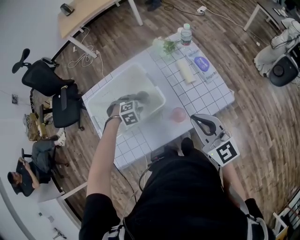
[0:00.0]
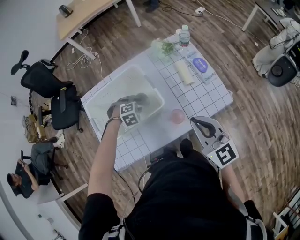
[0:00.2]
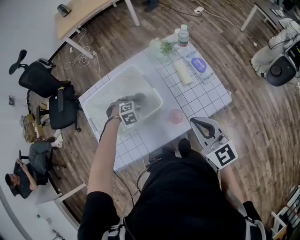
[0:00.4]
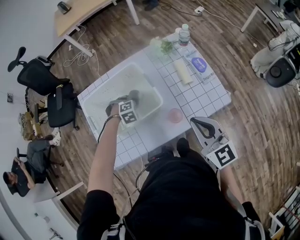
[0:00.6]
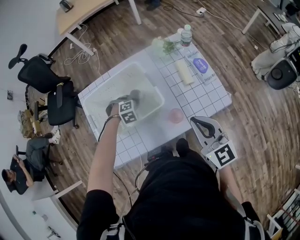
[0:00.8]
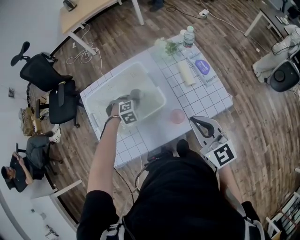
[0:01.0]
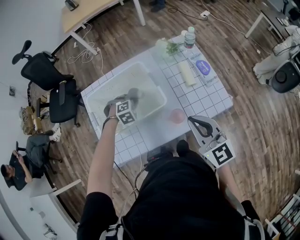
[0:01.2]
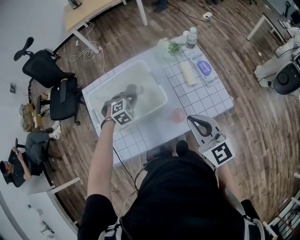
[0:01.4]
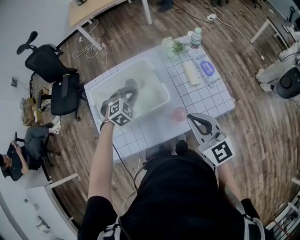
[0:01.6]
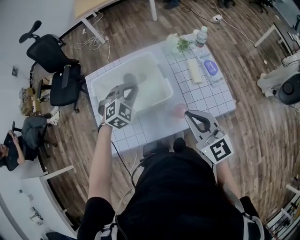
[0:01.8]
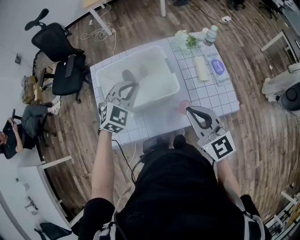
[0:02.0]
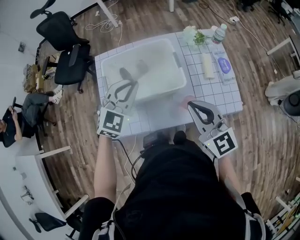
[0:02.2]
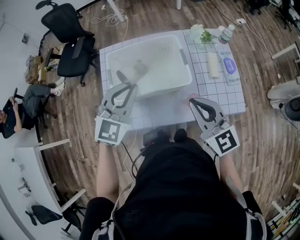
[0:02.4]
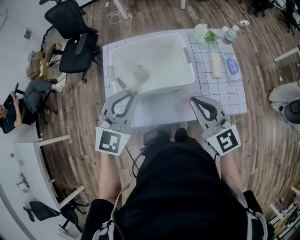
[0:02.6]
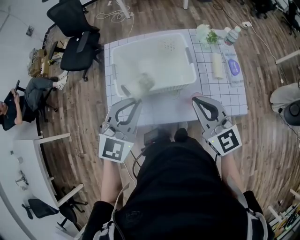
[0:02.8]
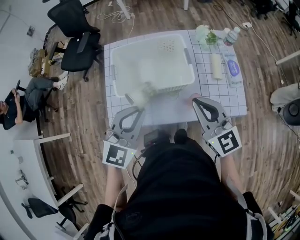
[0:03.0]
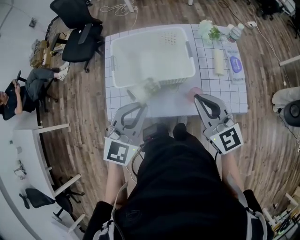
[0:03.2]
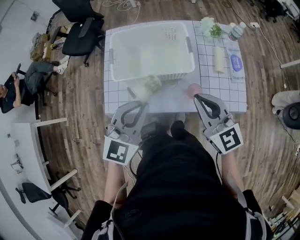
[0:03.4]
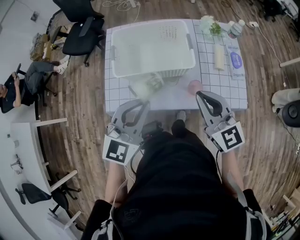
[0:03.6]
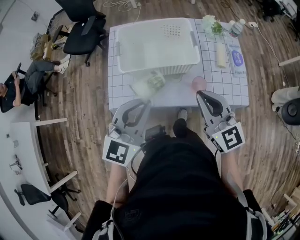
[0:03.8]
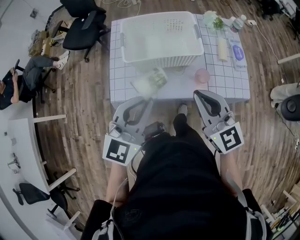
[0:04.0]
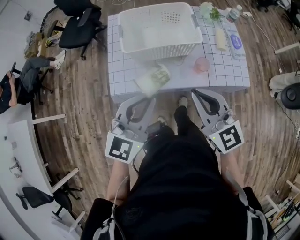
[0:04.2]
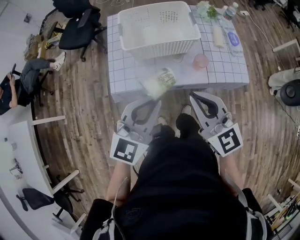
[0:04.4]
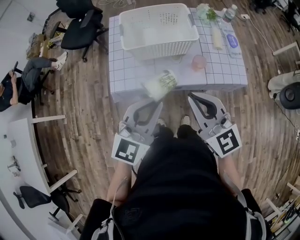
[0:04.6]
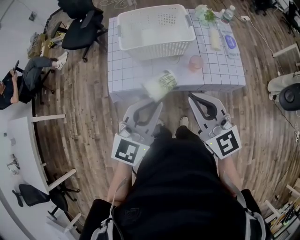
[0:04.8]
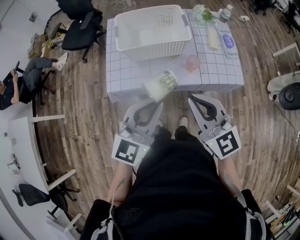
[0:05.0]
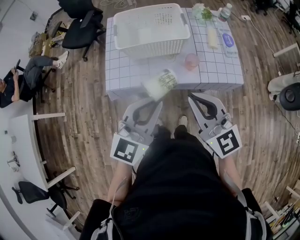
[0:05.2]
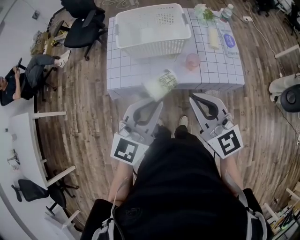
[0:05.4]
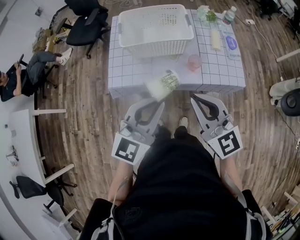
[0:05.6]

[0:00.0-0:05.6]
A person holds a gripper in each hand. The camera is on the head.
0:00.0 to 0:01.4: The left gripper moves approximately 5 cm, and closes up.
0:01.4 to 0:02.8: The right gripper heads to the left, covering about 10 cm; the left gripper goes some 30 cm upward and backward, and tips its fingers upward by some 40 degrees.
0:02.8 to 0:04.2: The left gripper moves backward, approximately 15 cm, and rotates roughly 20 degrees. The right gripper is displaced backward and to the left by approximately 15 cm.
0:04.2 to 0:05.6: The right gripper travels backward by about 5 cm. The left gripper travels backward and to the right by some 10 cm.

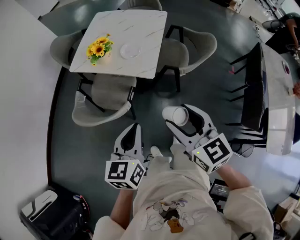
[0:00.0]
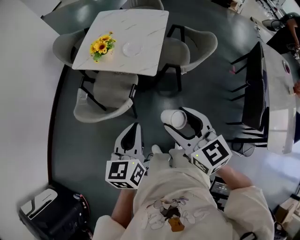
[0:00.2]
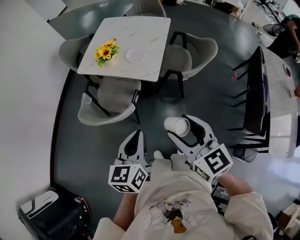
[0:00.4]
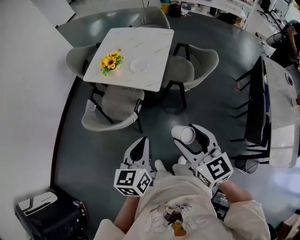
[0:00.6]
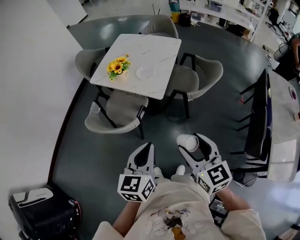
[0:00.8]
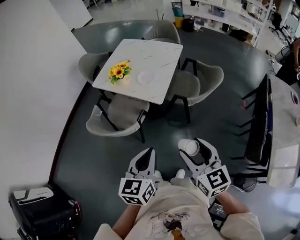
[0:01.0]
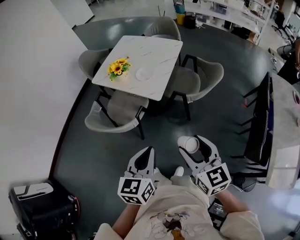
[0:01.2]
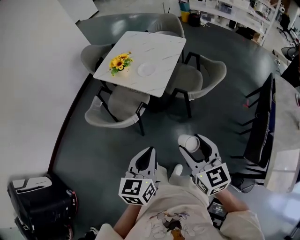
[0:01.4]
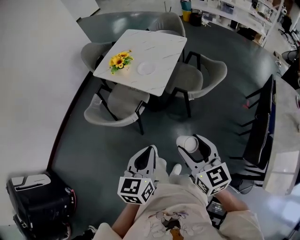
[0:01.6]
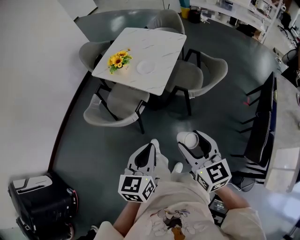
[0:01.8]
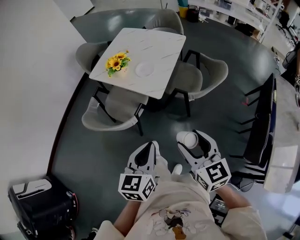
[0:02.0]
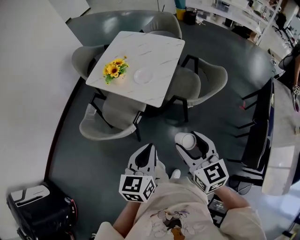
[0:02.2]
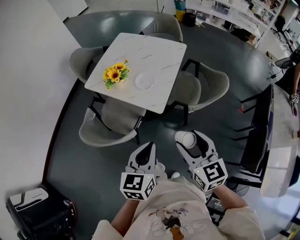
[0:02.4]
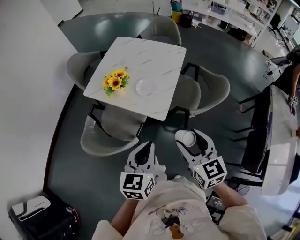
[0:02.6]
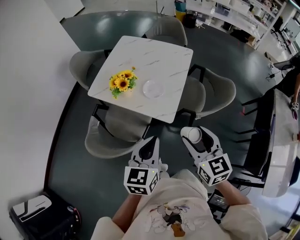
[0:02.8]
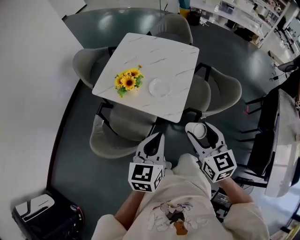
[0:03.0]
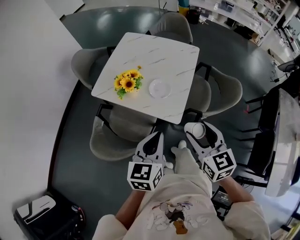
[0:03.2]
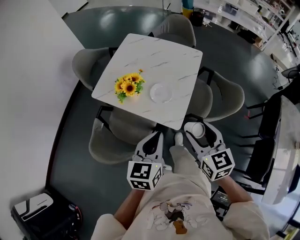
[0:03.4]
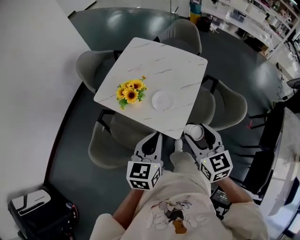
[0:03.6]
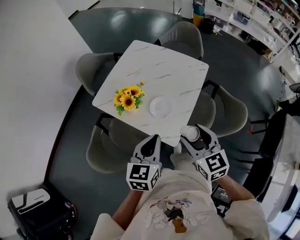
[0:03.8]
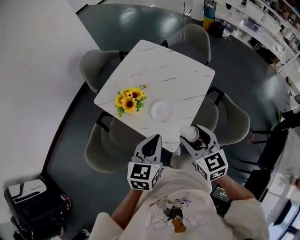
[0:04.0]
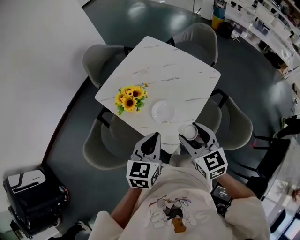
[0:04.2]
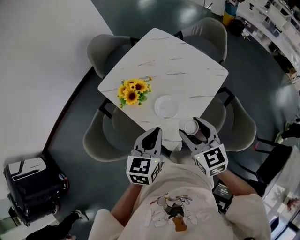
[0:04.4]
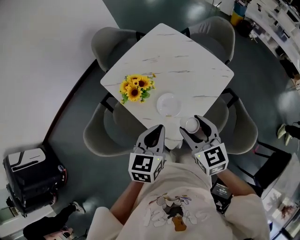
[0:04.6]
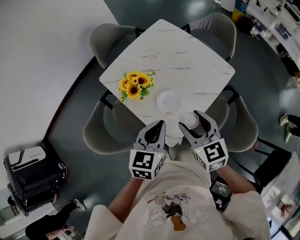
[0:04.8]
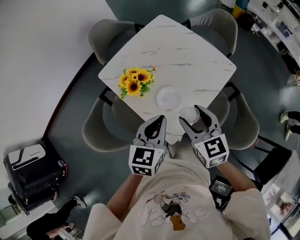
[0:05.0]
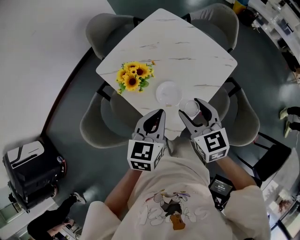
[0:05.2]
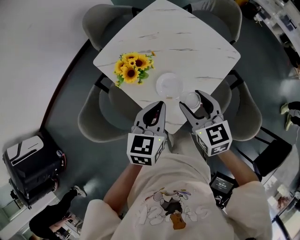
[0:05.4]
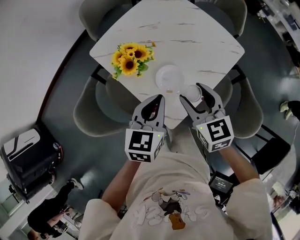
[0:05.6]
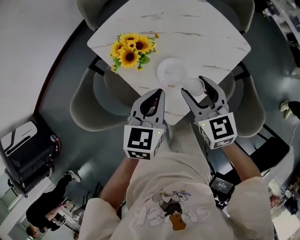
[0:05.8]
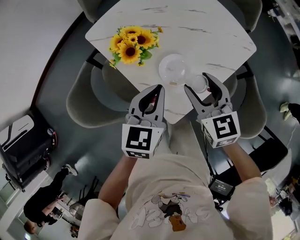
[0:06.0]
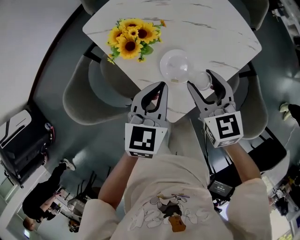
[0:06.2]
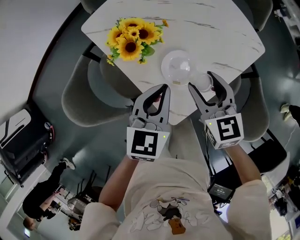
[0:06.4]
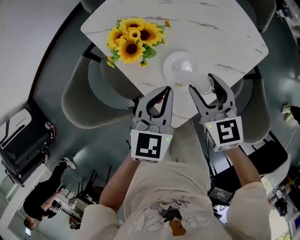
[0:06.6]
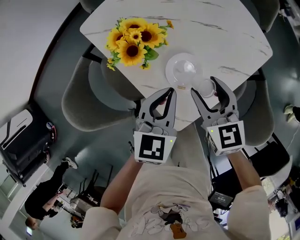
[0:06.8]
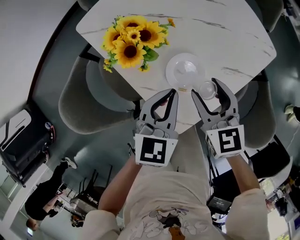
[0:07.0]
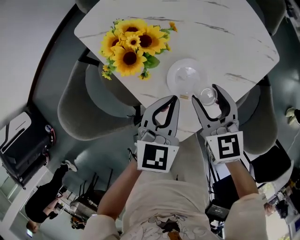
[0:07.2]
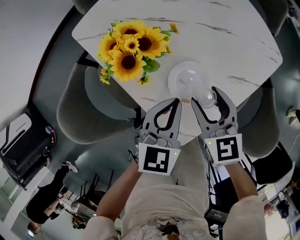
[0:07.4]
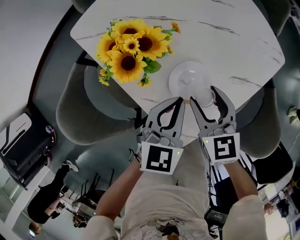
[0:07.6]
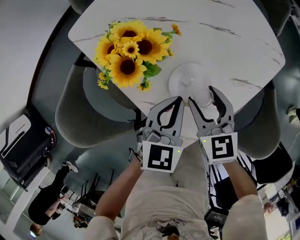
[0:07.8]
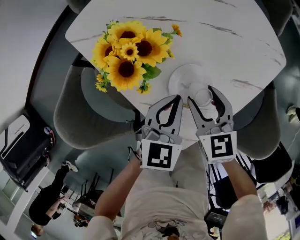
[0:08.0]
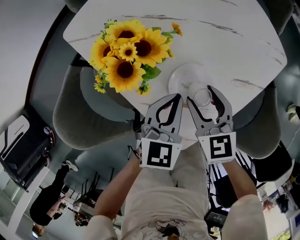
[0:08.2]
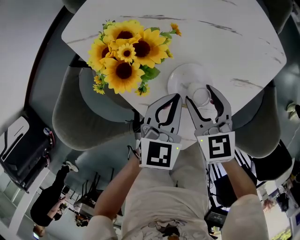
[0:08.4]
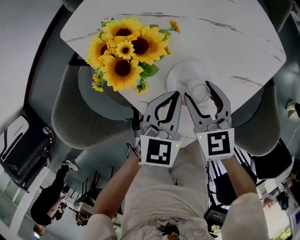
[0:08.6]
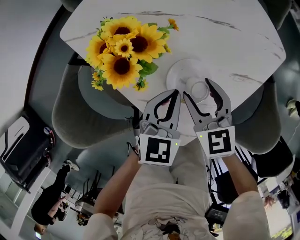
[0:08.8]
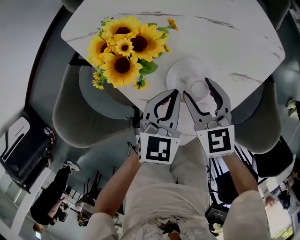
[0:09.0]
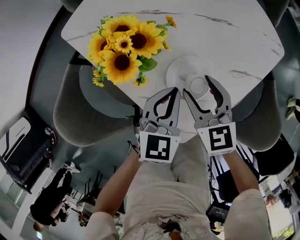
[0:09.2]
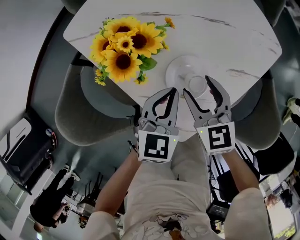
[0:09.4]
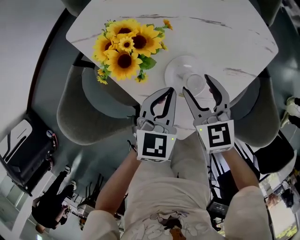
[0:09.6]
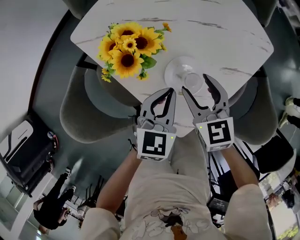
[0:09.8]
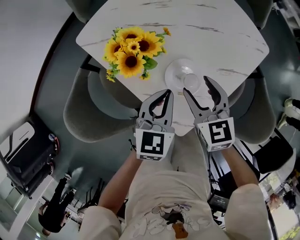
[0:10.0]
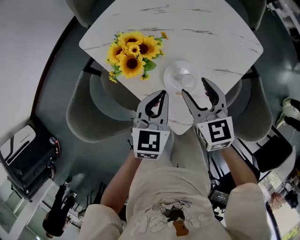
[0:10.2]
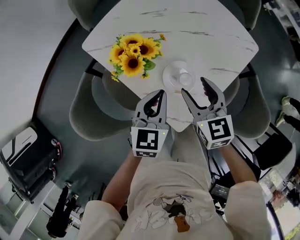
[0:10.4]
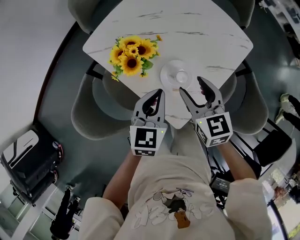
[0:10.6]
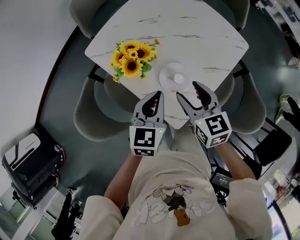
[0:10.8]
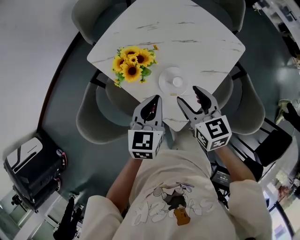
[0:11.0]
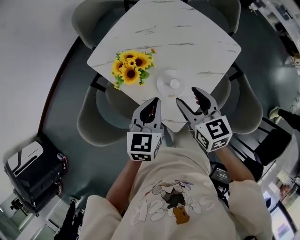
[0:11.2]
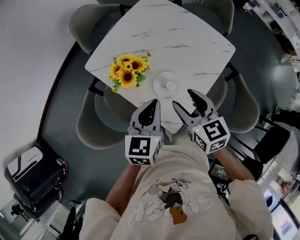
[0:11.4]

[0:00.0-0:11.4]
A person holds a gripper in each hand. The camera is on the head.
0:00.0 to 0:01.4: Both grippers move to the right and backward, approximately 15 cm.
0:01.4 to 0:02.8: Both grippers travel together forward, about 25 cm.
0:02.8 to 0:04.2: Both grippers travel together forward, about 20 cm. The right gripper swivels approximately 20 degrees.
0:04.2 to 0:05.6: The grippers both shift forward and downward by approximately 10 cm.
0:05.6 to 0:07.2: Both grippers move downward, about 15 cm.
0:07.2 to 0:08.6: Both grippers move downward, roughly 5 cm.
0:08.6 to 0:10.0: Both grippers travel together upward, approximately 5 cm.
0:10.0 to 0:11.4: The grippers both shift upward by about 15 cm.

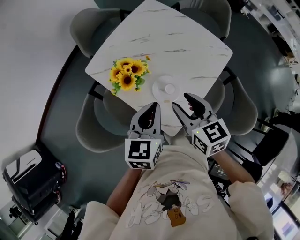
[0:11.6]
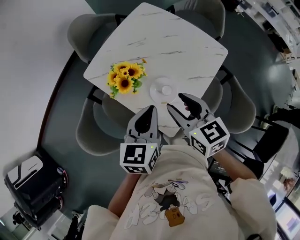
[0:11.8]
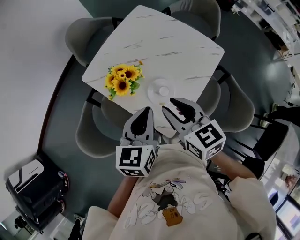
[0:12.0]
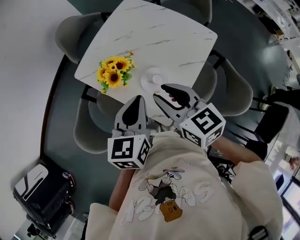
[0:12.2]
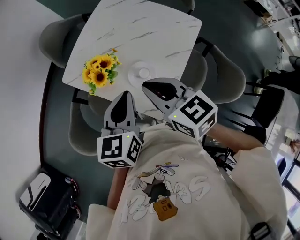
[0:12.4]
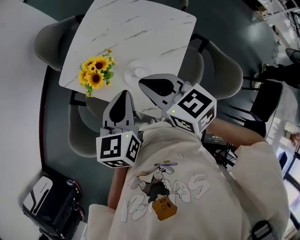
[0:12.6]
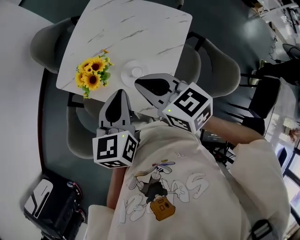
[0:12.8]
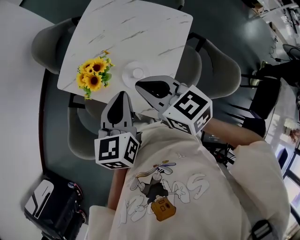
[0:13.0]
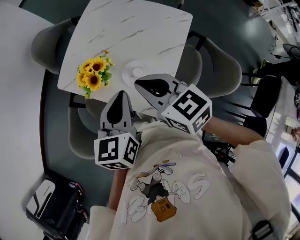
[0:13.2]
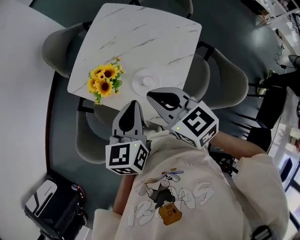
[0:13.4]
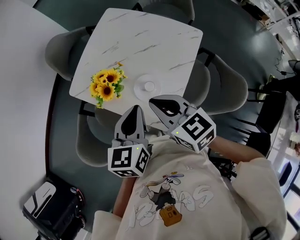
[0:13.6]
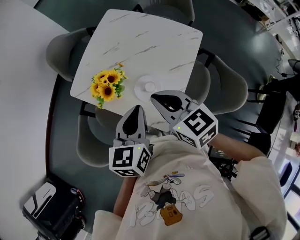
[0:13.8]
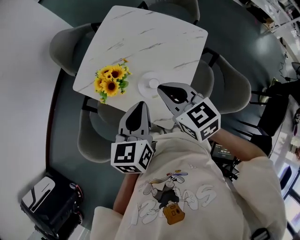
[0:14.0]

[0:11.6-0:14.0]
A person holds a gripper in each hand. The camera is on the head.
0:11.6 to 0:12.8: The right gripper moves approximately 5 cm, and closes up.
0:12.8 to 0:14.0: The grippers make only small movements.

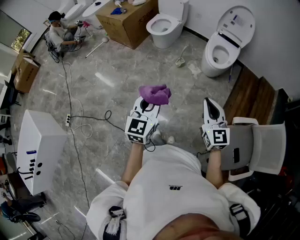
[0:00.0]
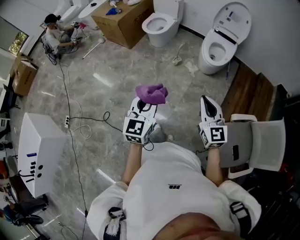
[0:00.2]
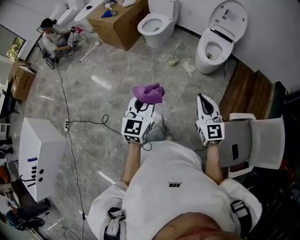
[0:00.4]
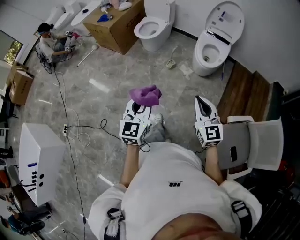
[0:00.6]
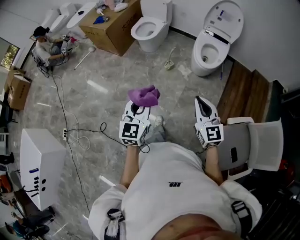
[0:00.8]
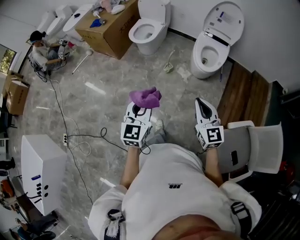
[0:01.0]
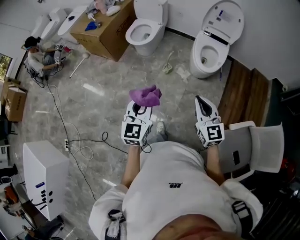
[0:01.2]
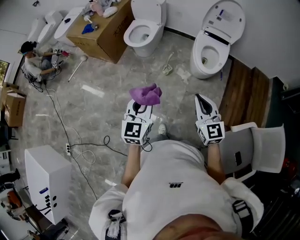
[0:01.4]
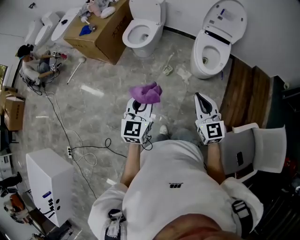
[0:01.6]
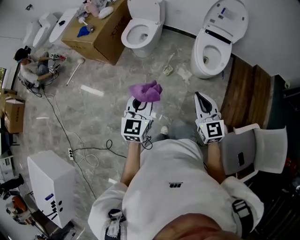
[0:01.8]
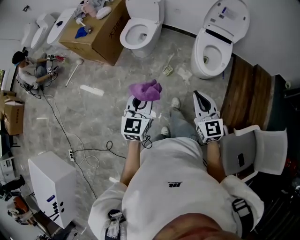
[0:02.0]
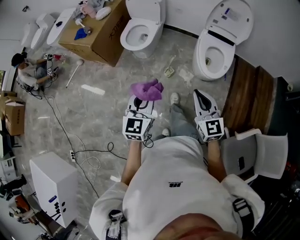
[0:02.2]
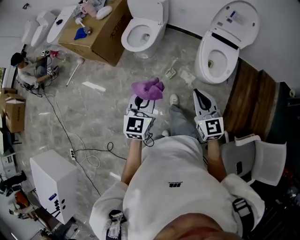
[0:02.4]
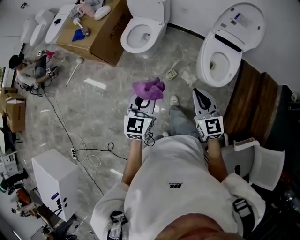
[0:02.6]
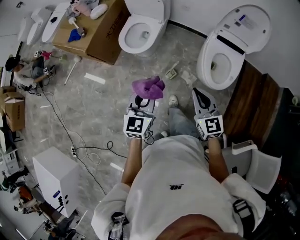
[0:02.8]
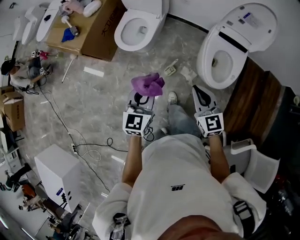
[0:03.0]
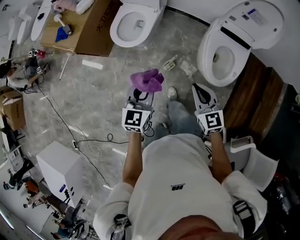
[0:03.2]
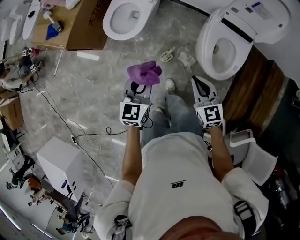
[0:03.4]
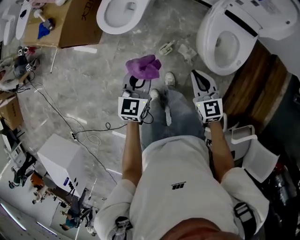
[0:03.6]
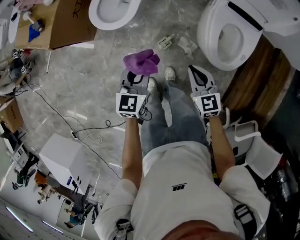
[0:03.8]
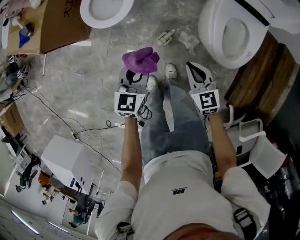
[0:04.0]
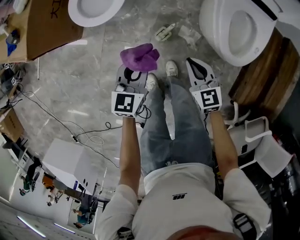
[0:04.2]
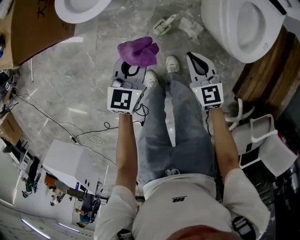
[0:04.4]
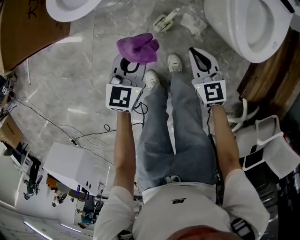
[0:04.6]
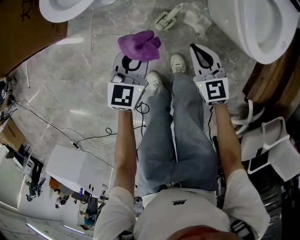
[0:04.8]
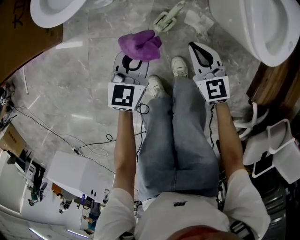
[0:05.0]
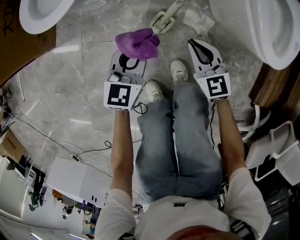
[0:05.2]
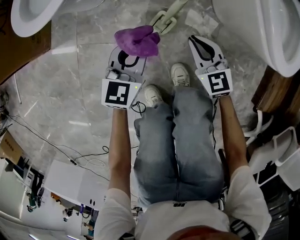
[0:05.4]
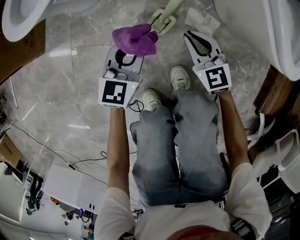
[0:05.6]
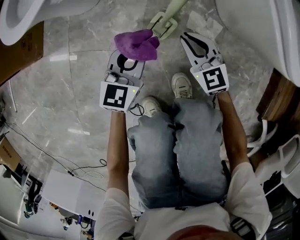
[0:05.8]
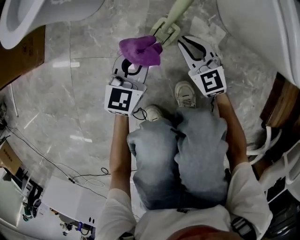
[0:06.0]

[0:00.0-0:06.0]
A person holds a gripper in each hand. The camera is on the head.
0:00.0 to 0:01.6: The grippers both shift forward by roughly 30 cm.
0:01.6 to 0:03.0: Both grippers travel together forward, roughly 35 cm.
0:03.0 to 0:04.4: Both grippers travel together downward, some 40 cm.
0:04.4 to 0:06.0: Both grippers move downward, some 40 cm.
